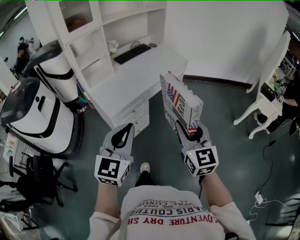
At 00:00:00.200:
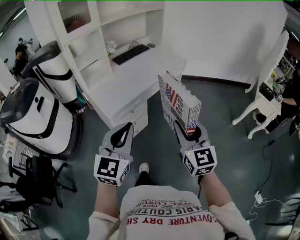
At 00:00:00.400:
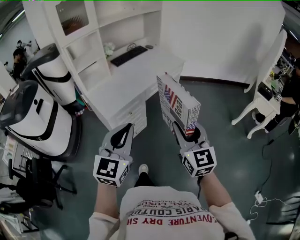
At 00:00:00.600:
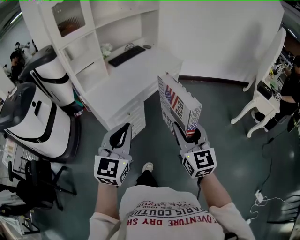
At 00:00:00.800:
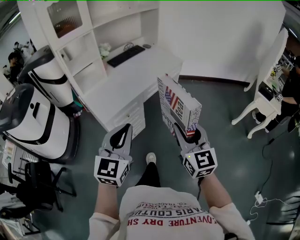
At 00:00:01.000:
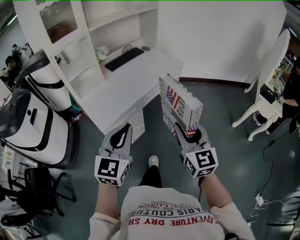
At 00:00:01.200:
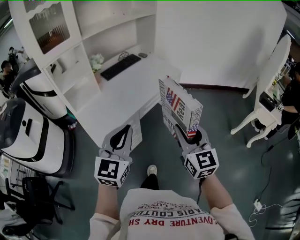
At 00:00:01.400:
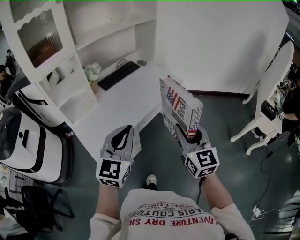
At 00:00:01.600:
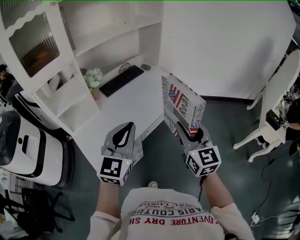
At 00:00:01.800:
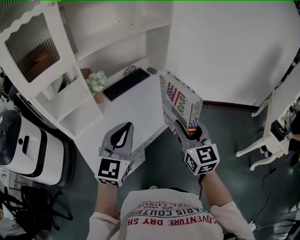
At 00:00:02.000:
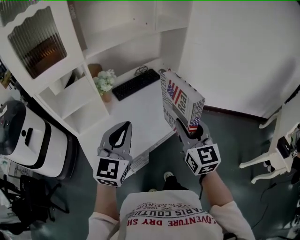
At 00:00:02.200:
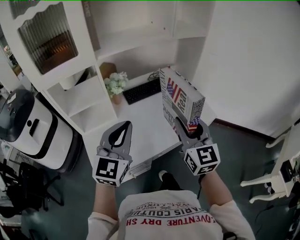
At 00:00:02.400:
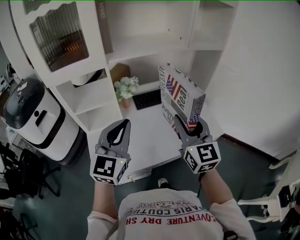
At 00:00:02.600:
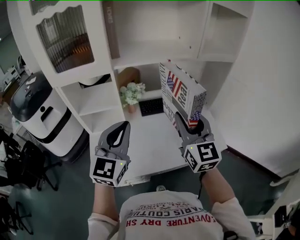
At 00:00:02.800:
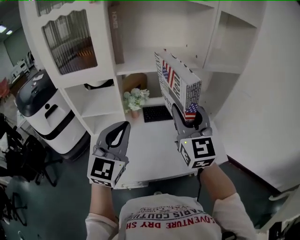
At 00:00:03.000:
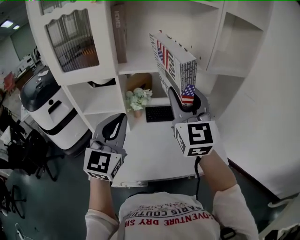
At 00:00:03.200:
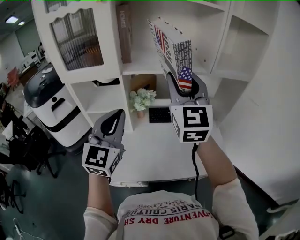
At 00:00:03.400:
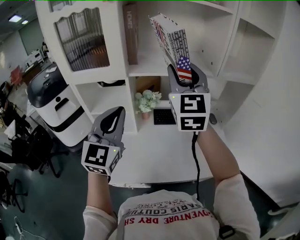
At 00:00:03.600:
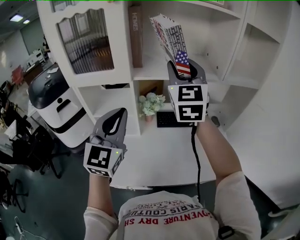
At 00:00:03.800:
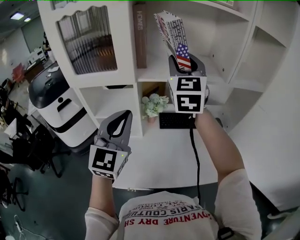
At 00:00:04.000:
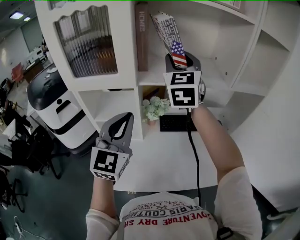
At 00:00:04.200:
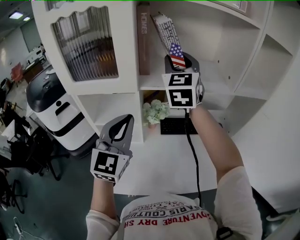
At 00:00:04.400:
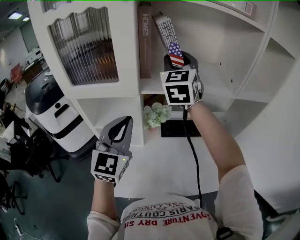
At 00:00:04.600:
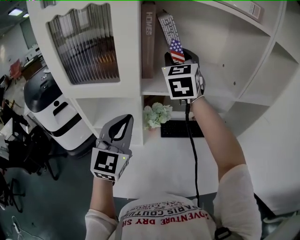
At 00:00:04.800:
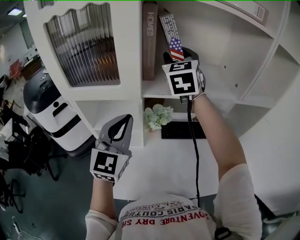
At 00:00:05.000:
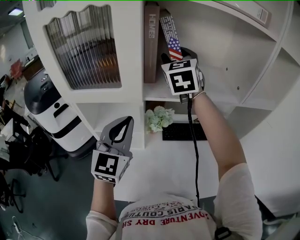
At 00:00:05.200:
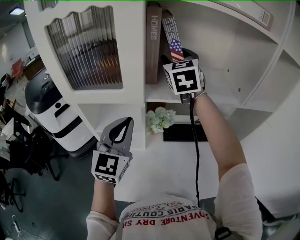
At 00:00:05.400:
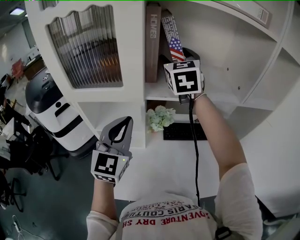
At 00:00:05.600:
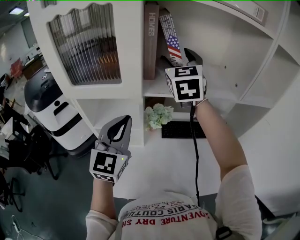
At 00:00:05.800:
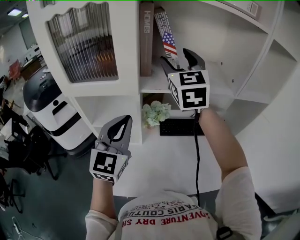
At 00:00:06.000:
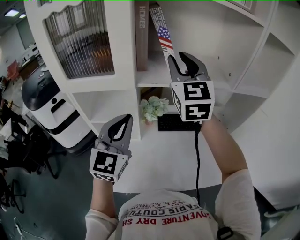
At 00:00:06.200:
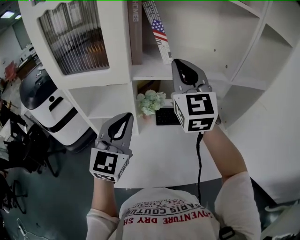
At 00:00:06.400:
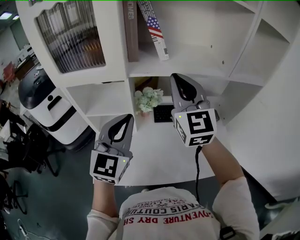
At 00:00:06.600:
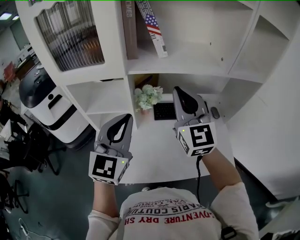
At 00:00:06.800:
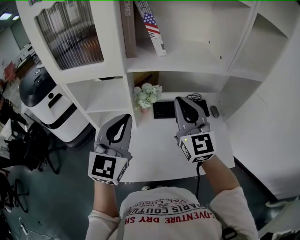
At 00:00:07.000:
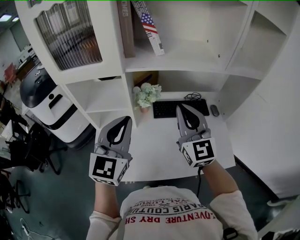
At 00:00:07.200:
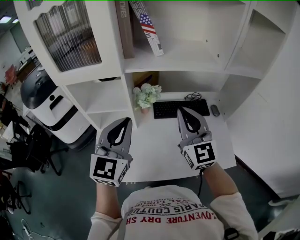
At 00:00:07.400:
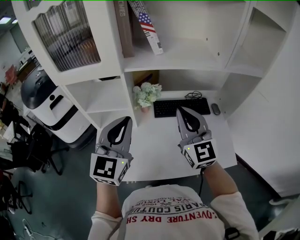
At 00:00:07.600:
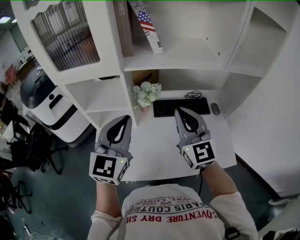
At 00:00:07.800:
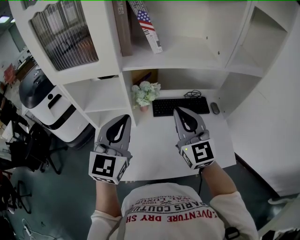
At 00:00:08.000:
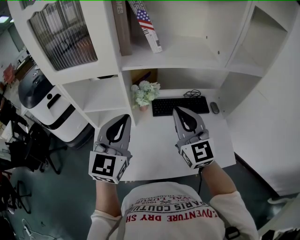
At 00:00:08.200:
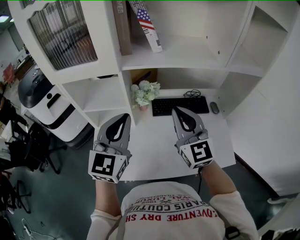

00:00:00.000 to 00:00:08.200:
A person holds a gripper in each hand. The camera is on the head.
00:00:00.000 to 00:00:01.600: Both grippers travel together forward, about 40 cm.
00:00:01.600 to 00:00:03.200: The left gripper shifts by some 25 cm, and rotates some 50 degrees. The right gripper changes place by approximately 50 cm, and rotates about 40 degrees.
00:00:03.200 to 00:00:05.000: The left gripper shifts some 15 cm forward and to the left. The right gripper travels forward and to the left by some 30 cm.
00:00:05.000 to 00:00:06.600: The right gripper goes about 25 cm backward, to the right and downward, and closes. The left gripper heads backward and to the right, covering approximately 10 cm.
00:00:06.600 to 00:00:08.200: The right gripper moves downward, approximately 10 cm.

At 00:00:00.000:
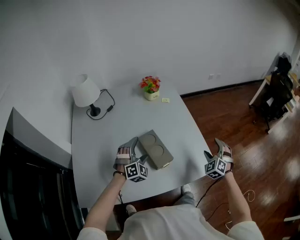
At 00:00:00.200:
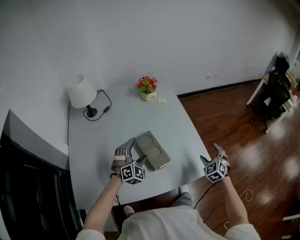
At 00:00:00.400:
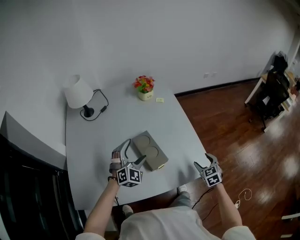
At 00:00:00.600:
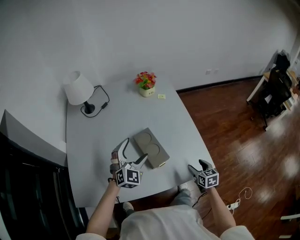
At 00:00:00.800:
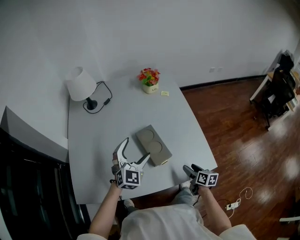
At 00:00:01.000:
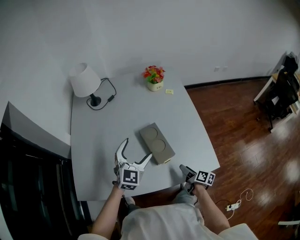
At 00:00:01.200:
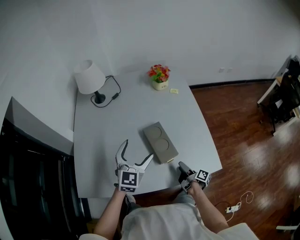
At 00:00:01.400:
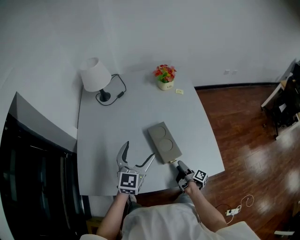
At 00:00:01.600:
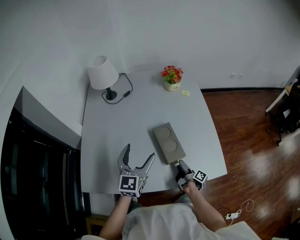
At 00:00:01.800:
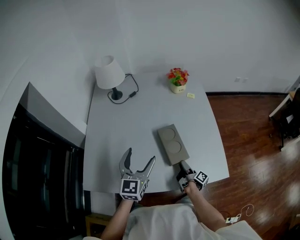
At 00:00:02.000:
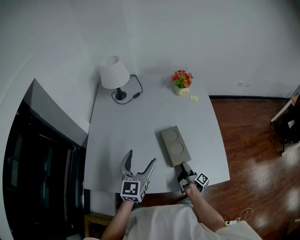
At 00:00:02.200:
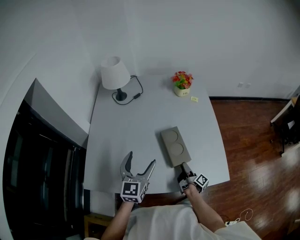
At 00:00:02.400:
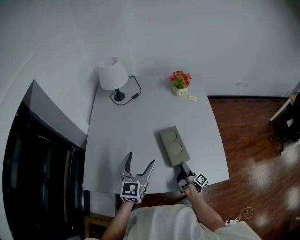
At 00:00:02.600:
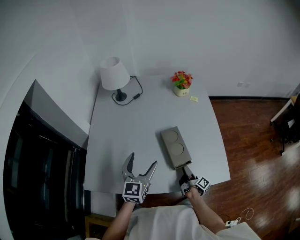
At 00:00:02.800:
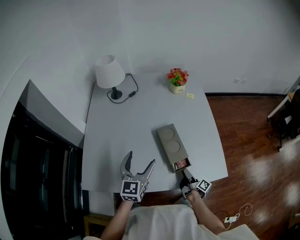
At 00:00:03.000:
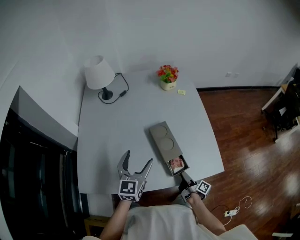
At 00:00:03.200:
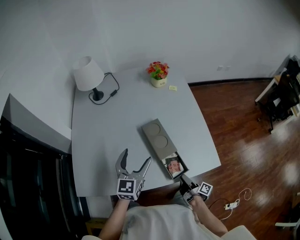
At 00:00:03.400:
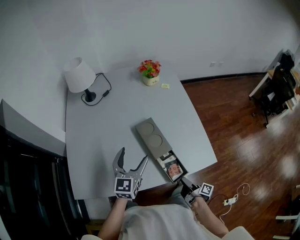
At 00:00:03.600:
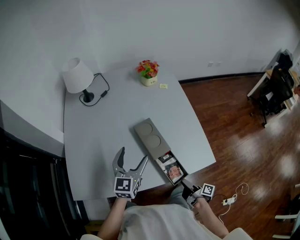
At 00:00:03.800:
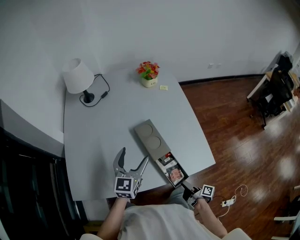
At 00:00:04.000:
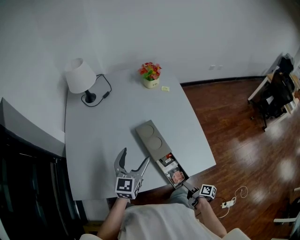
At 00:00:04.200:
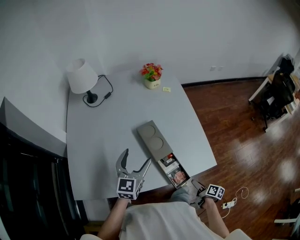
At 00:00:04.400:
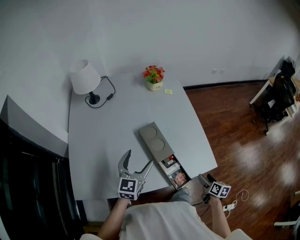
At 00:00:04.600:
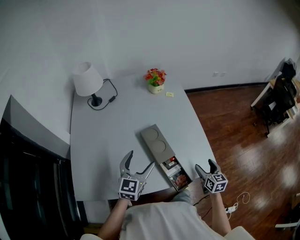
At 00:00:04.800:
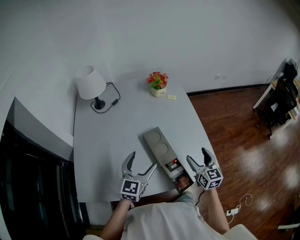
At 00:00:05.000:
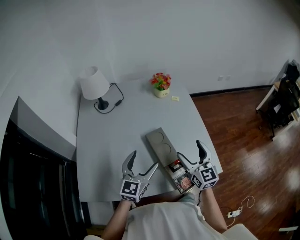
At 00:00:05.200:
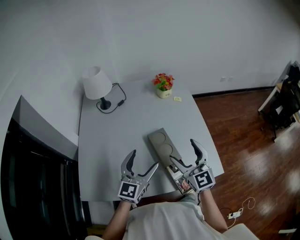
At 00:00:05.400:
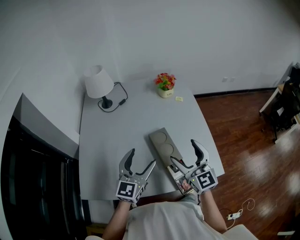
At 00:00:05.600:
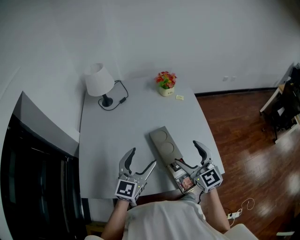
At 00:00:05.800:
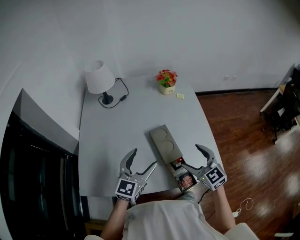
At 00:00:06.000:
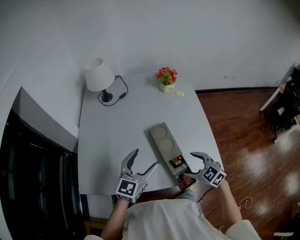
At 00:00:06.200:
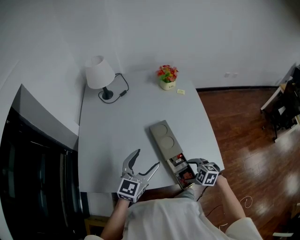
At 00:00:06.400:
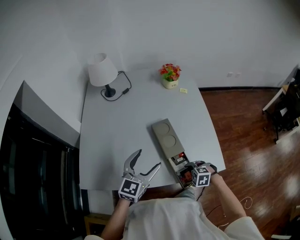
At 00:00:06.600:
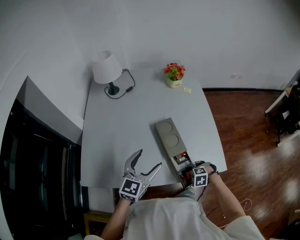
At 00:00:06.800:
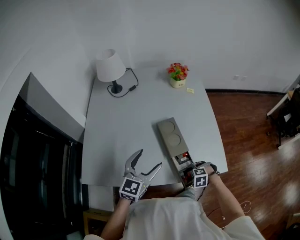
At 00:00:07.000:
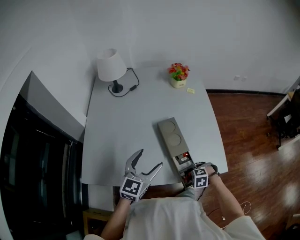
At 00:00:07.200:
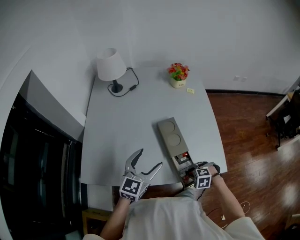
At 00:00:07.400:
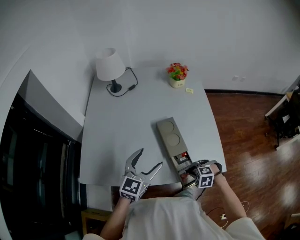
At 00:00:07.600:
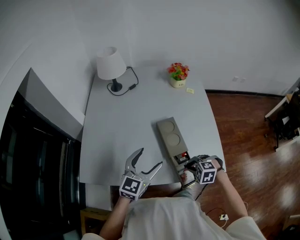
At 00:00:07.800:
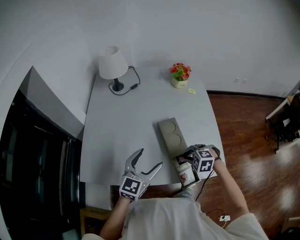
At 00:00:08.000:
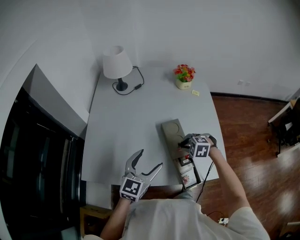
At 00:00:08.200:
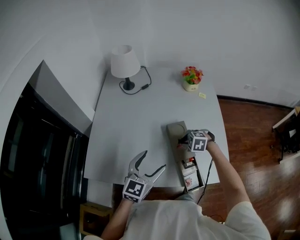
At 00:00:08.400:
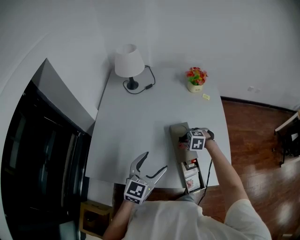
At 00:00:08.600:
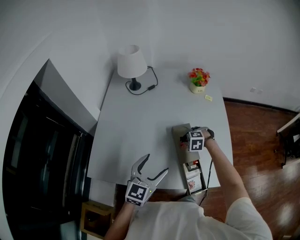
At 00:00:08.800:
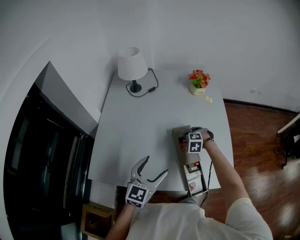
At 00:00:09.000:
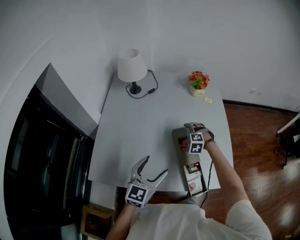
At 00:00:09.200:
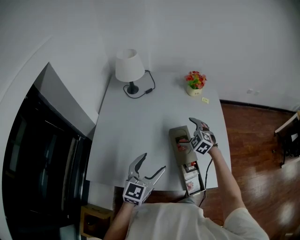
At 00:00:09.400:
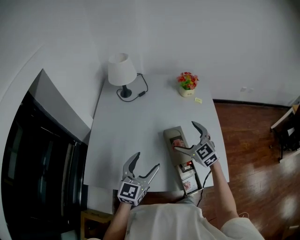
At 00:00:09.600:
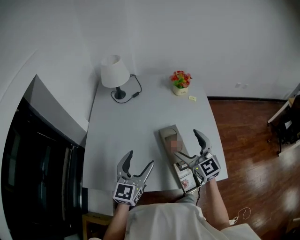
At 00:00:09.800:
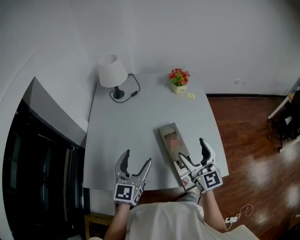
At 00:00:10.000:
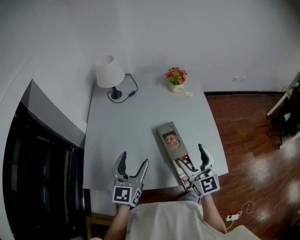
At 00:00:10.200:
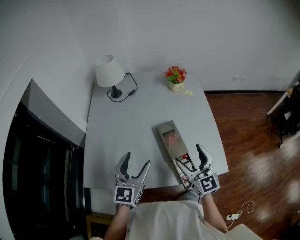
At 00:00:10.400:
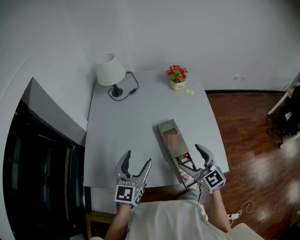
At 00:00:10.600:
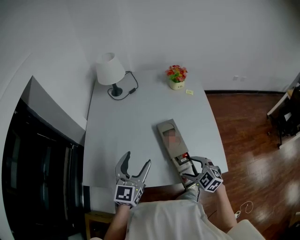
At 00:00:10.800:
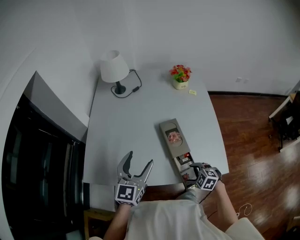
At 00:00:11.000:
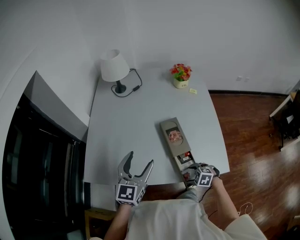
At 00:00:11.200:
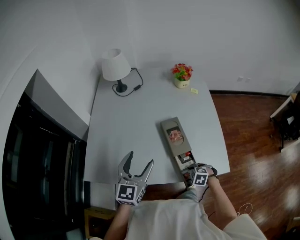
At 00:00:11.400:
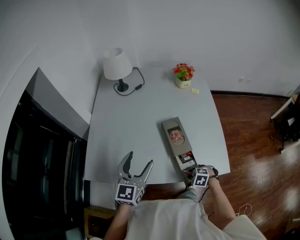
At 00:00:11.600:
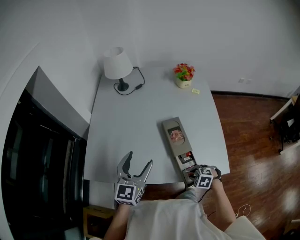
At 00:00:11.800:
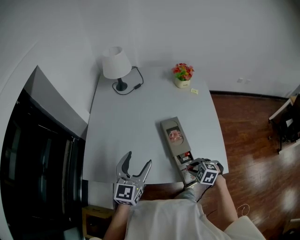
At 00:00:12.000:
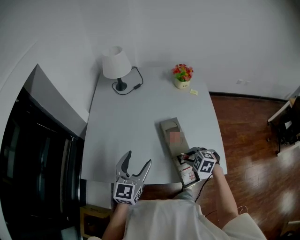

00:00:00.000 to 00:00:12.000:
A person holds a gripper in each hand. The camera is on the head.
00:00:00.000 to 00:00:01.600: The right gripper heads to the left and downward, covering some 25 cm, and twists approximately 140 degrees clockwise, seen from behind, while the left gripper moves upward, backward and to the left, roughly 15 cm, and rotates around the line of its fingers by approximately 60 degrees, counterclockwise from behind.
00:00:01.600 to 00:00:03.000: The right gripper shifts roughly 10 cm backward.
00:00:03.000 to 00:00:04.400: The right gripper moves to the right, roughly 15 cm, twists roughly 50 degrees counterclockwise, seen from behind, and opens up.
00:00:04.400 to 00:00:06.000: The right gripper heads to the left, upward and forward, covering some 25 cm, and rotates around the line of its fingers by some 70 degrees, counterclockwise from behind.
00:00:06.000 to 00:00:07.600: The right gripper shifts roughly 10 cm downward, tips its fingers downward by about 30 degrees, and closes its fingers.
00:00:07.600 to 00:00:09.000: The right gripper is displaced forward by some 25 cm, and opens its fingers.
00:00:09.000 to 00:00:10.400: The right gripper shifts roughly 30 cm backward and upward, and points its fingers approximately 50 degrees further upward.
00:00:10.400 to 00:00:12.000: The right gripper heads downward, covering approximately 15 cm, angles its fingers downward, by some 50 degrees, and closes up.

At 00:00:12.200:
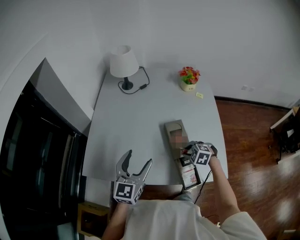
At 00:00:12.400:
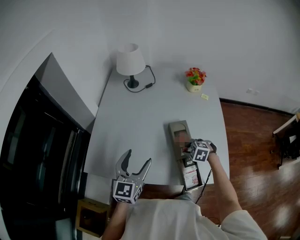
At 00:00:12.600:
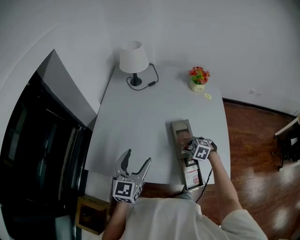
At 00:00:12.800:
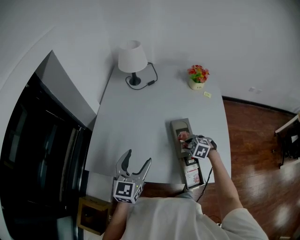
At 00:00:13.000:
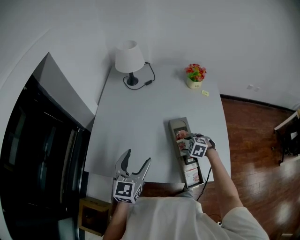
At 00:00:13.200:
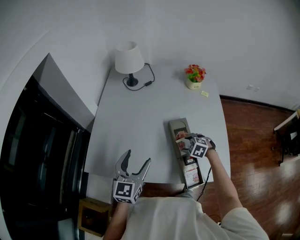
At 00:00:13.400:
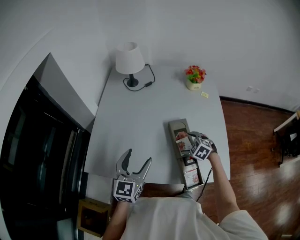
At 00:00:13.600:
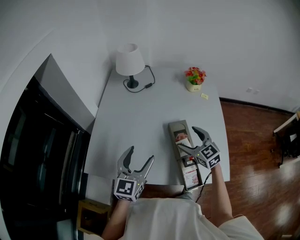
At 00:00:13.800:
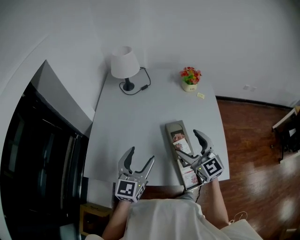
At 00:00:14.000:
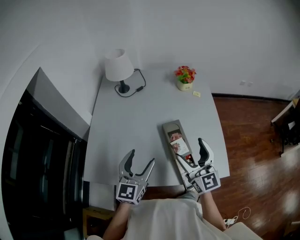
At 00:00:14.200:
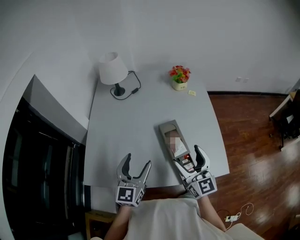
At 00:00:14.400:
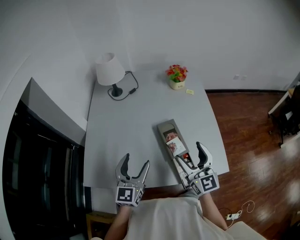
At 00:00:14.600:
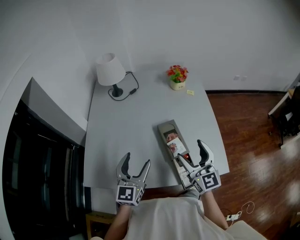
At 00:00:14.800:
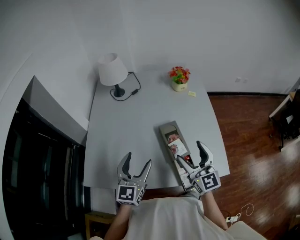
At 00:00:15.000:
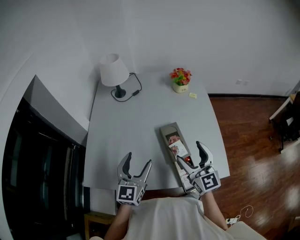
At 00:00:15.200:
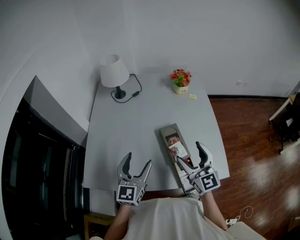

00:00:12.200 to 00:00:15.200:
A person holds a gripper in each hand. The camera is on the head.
00:00:12.200 to 00:00:13.800: The right gripper is displaced upward by about 20 cm, angles its fingers upward, by some 60 degrees, and opens.
